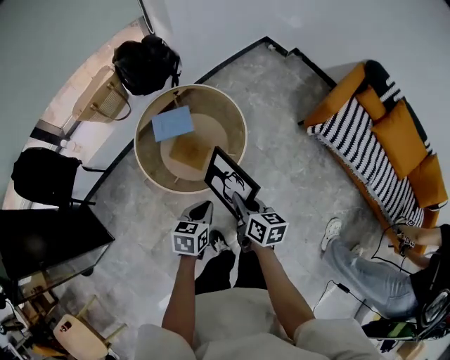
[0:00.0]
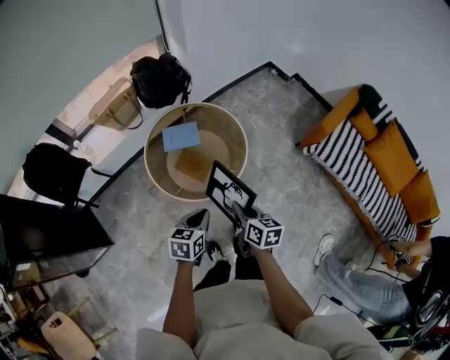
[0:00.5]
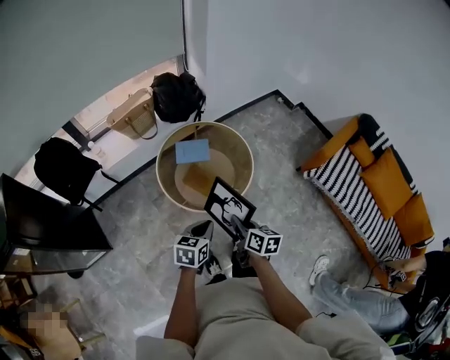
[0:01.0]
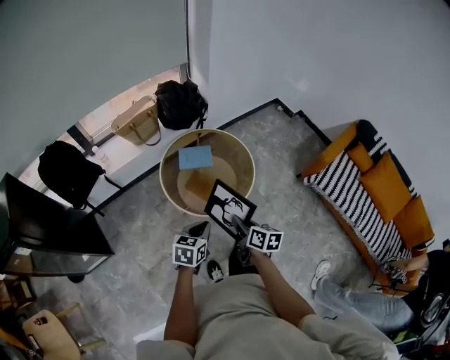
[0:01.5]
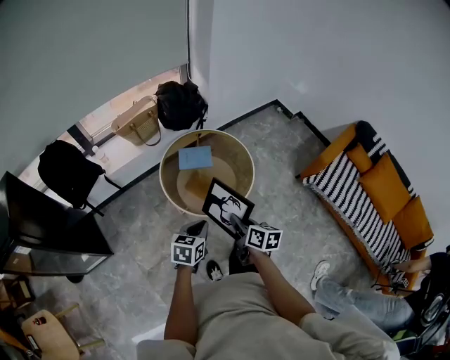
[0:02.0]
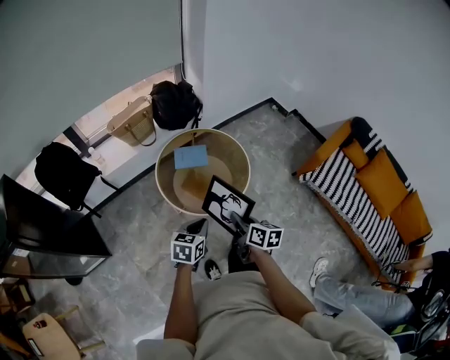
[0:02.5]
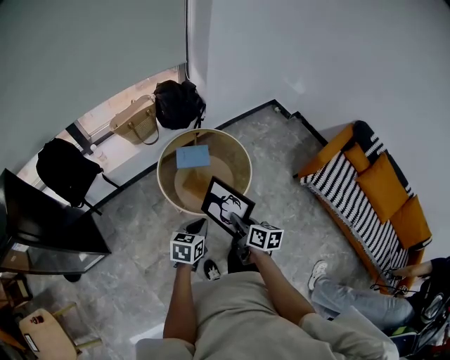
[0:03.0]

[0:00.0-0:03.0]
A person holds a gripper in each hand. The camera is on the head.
0:00.0 to 0:01.5: The grippers both shift upward, to the left and backward by roughly 15 cm.
0:01.5 to 0:03.0: There are only small adjustments of the grippers.

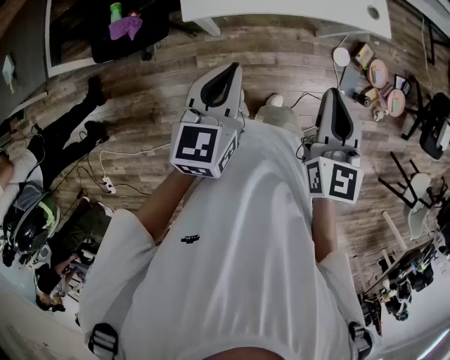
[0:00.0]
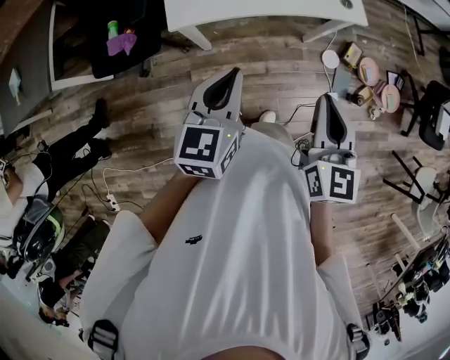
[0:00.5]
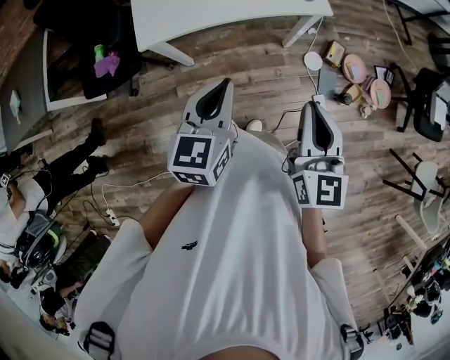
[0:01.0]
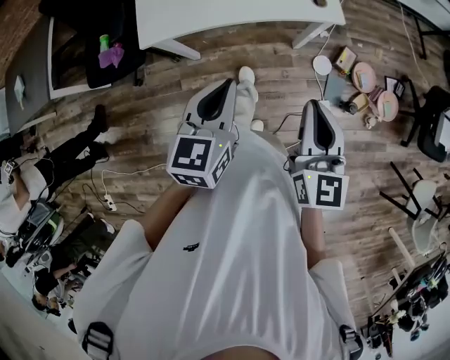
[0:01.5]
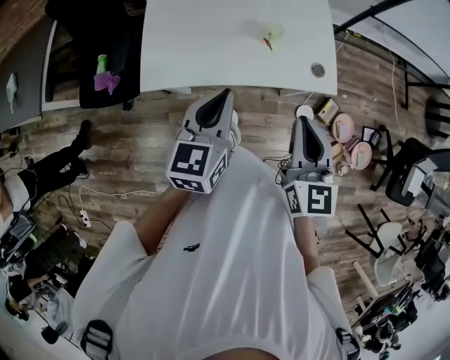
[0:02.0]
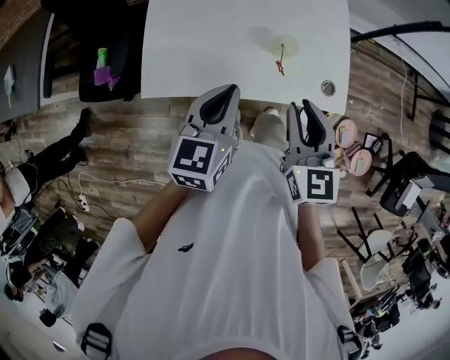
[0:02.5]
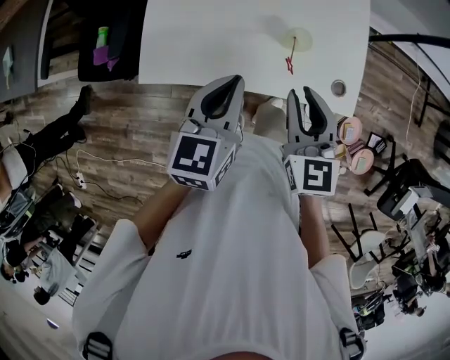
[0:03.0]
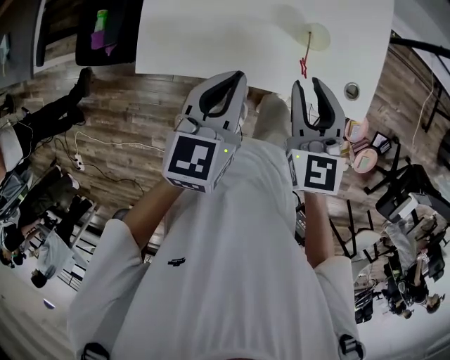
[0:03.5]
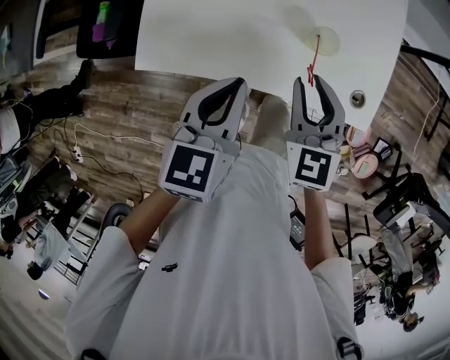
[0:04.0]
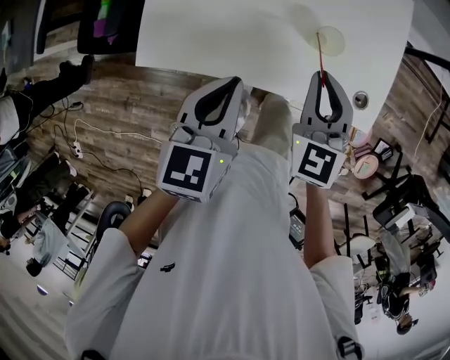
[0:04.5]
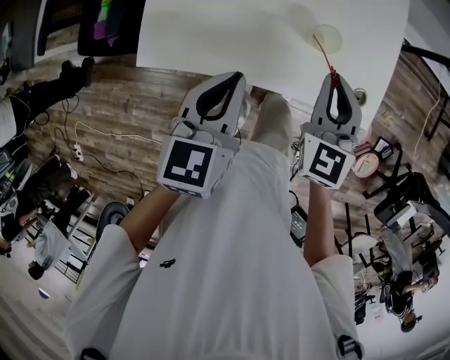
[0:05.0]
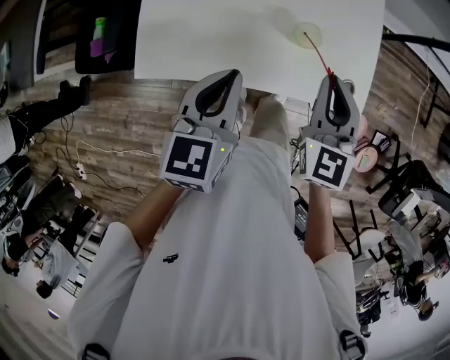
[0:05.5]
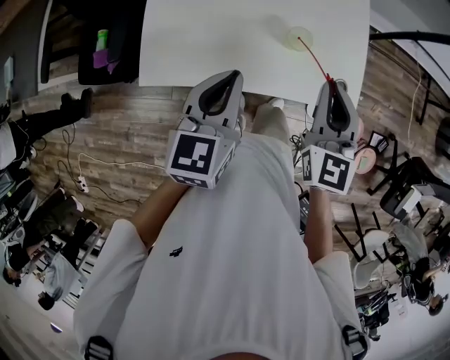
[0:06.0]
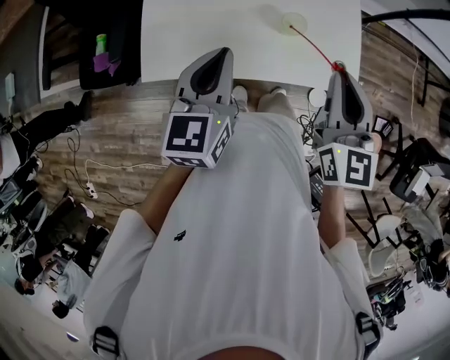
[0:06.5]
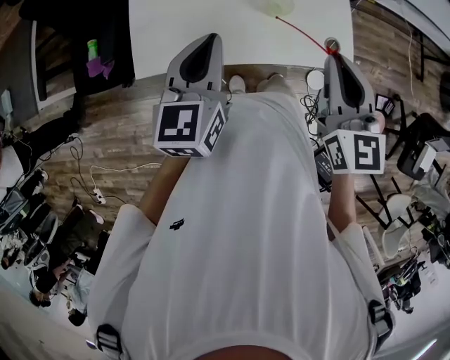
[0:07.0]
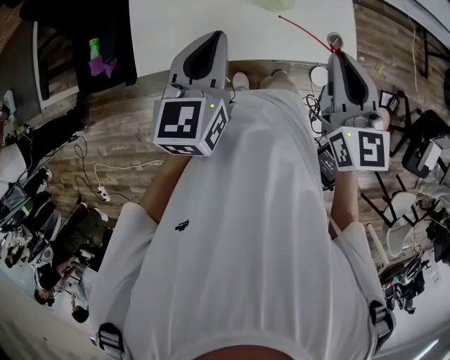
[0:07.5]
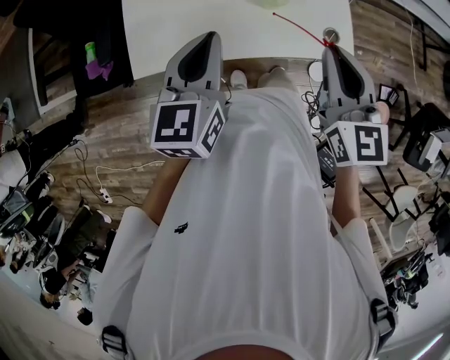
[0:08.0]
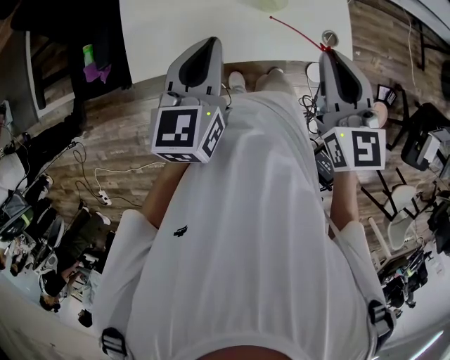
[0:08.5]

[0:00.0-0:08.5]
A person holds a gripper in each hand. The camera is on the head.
0:00.0 to 0:02.0: The grippers both shift forward and to the right by roughly 20 cm.
0:02.0 to 0:04.0: The right gripper heads forward and downward, covering roughly 25 cm, swivels some 30 degrees, and opens; the left gripper heads forward and downward, covering approximately 15 cm.
0:04.0 to 0:06.5: The left gripper heads upward, covering approximately 10 cm, while the right gripper travels upward and to the right by some 15 cm, rotates some 30 degrees, and closes up.
0:06.5 to 0:08.5: There are only small adjustments of the grippers.

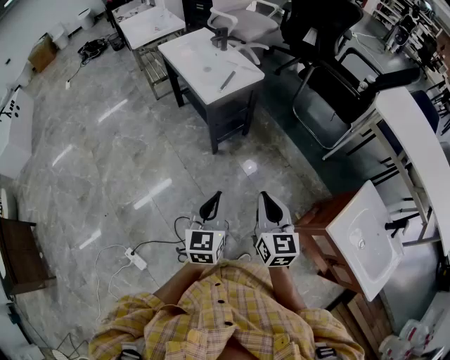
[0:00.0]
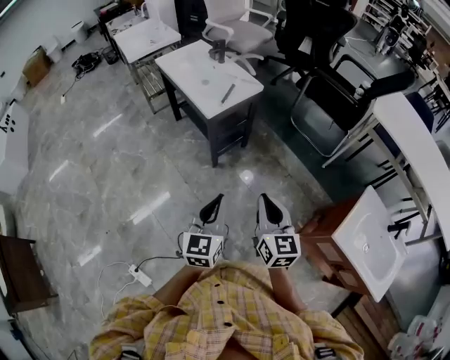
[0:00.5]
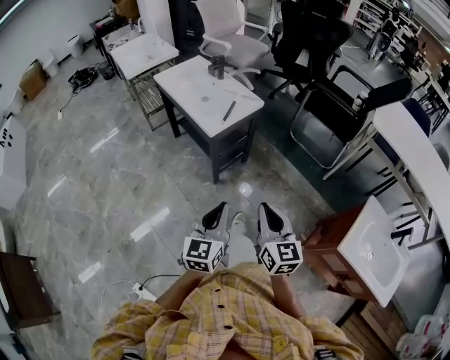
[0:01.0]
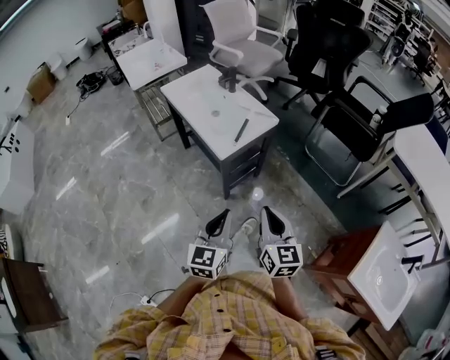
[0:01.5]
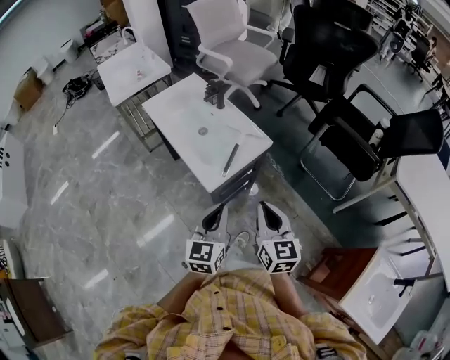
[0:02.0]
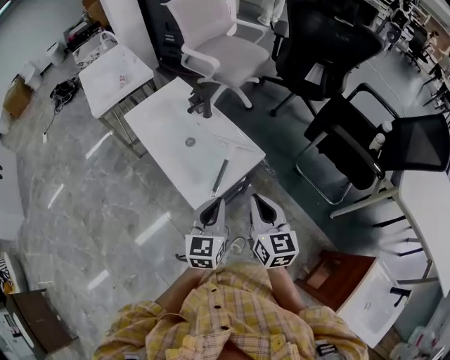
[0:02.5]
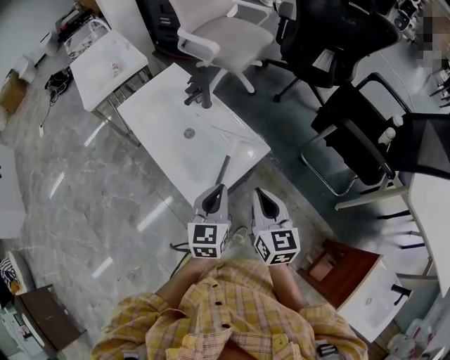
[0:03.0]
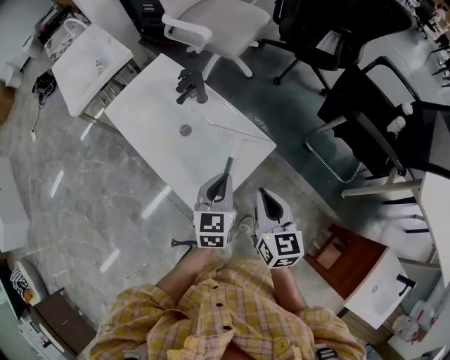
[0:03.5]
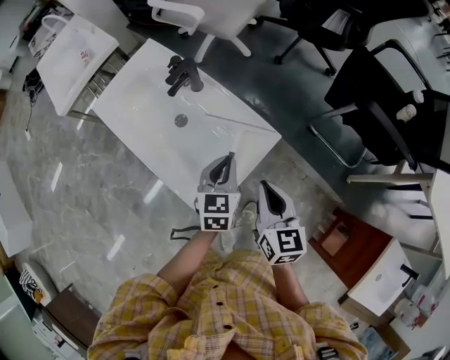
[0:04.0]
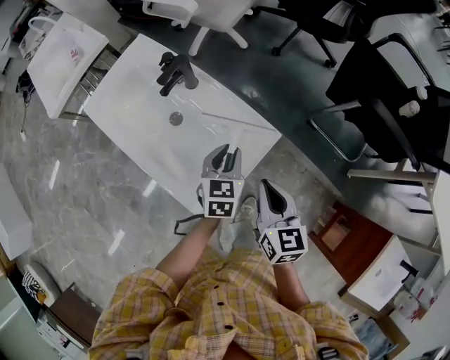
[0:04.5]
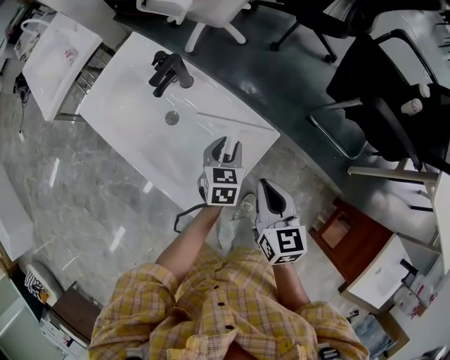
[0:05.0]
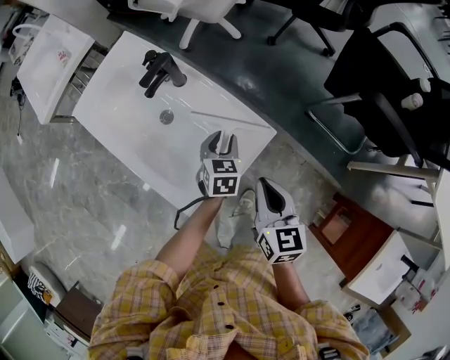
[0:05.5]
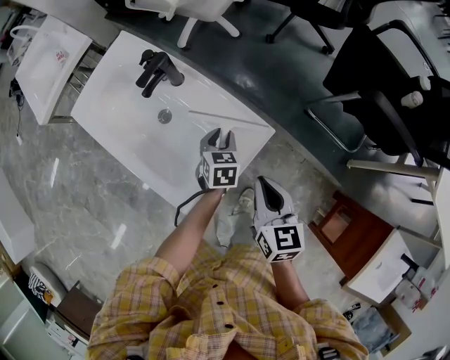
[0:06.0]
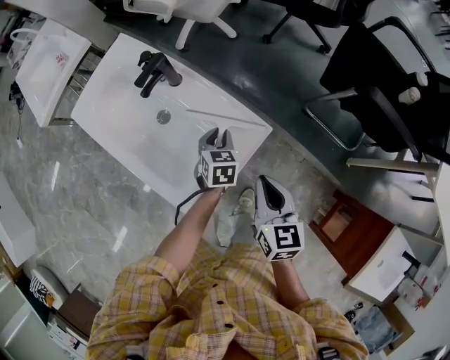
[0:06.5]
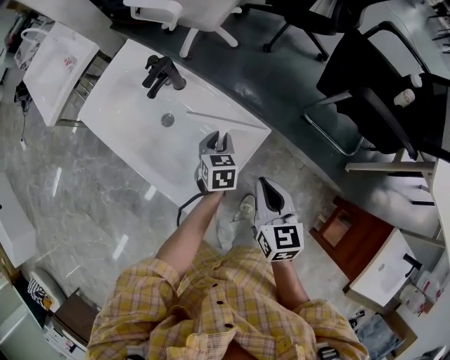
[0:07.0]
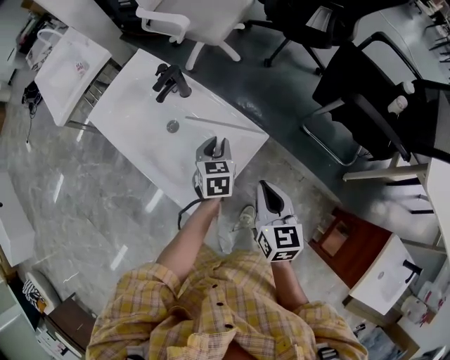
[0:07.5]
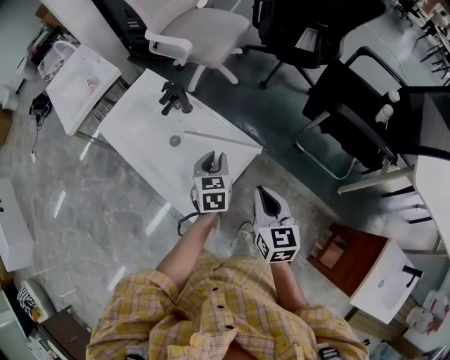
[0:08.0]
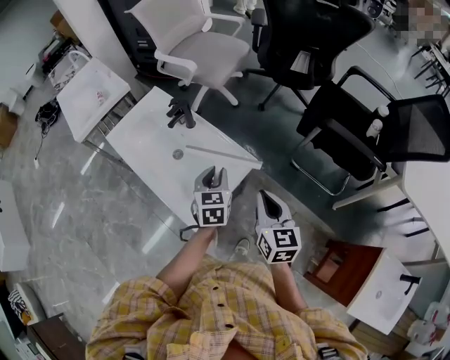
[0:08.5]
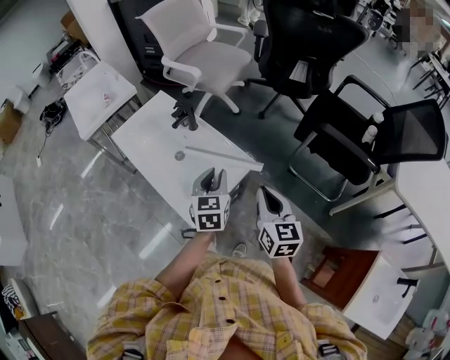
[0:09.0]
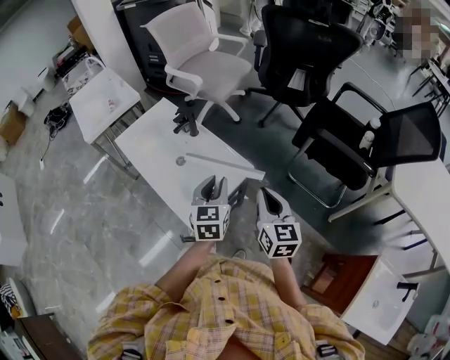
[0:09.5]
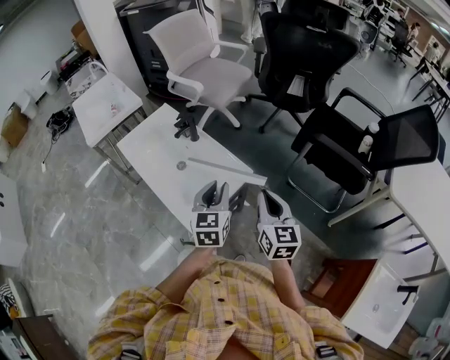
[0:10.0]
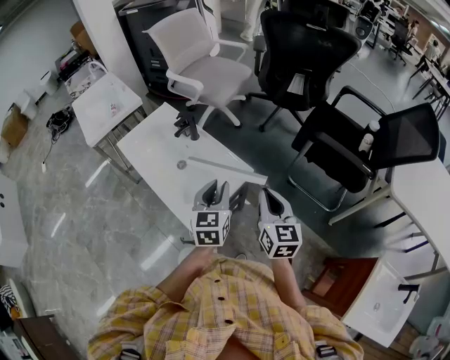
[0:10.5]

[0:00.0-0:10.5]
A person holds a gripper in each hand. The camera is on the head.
0:00.0 to 0:02.0: Both grippers move forward, roughly 40 cm.
0:02.0 to 0:04.0: The two grippers go roughly 30 cm forward and downward. The left gripper swivels some 20 degrees.
0:04.0 to 0:06.5: The left gripper moves downward and forward, roughly 15 cm; the right gripper moves about 5 cm.
0:06.5 to 0:08.5: The right gripper goes approximately 10 cm upward and backward. Meanwhile the left gripper goes roughly 20 cm upward and backward.
0:08.5 to 0:10.5: The right gripper shifts by approximately 5 cm, while the left gripper travels upward and backward by some 10 cm.

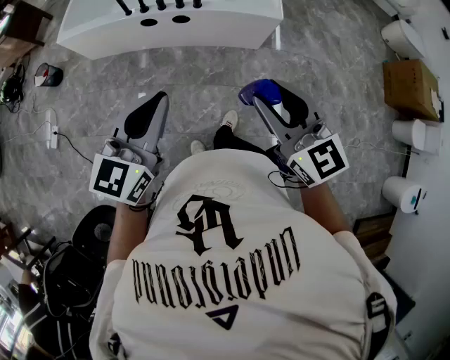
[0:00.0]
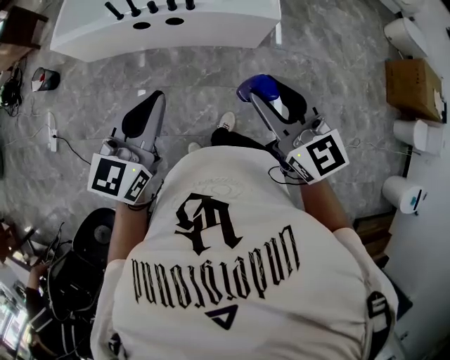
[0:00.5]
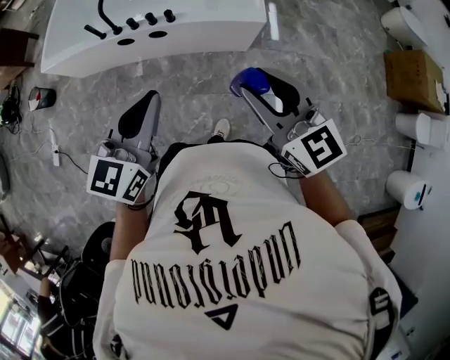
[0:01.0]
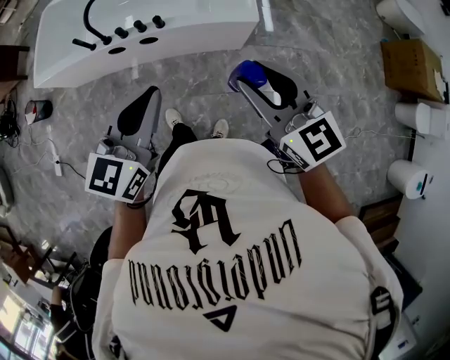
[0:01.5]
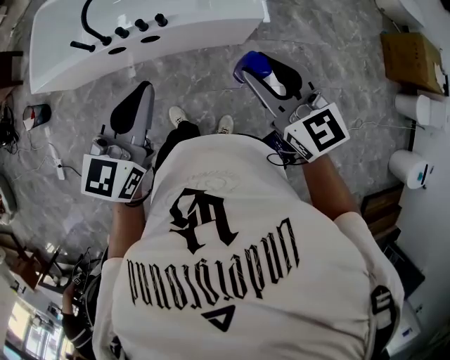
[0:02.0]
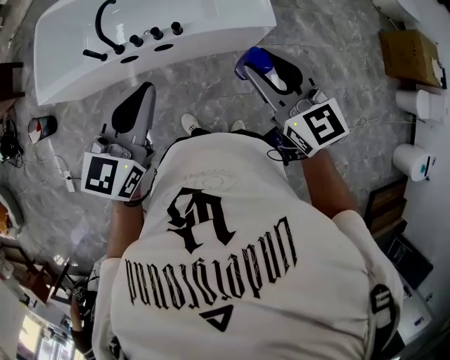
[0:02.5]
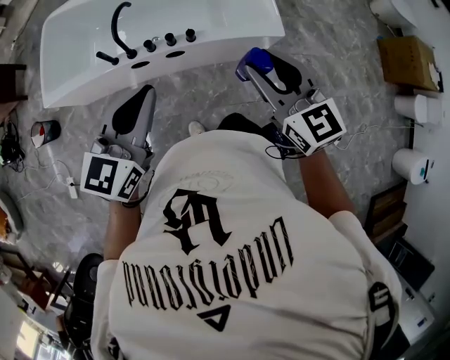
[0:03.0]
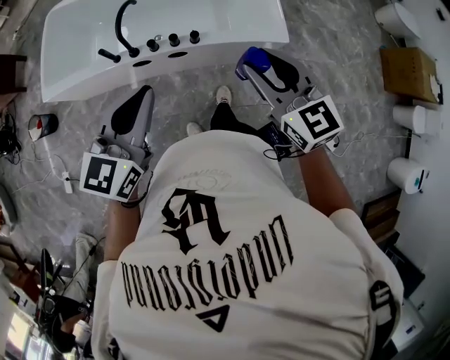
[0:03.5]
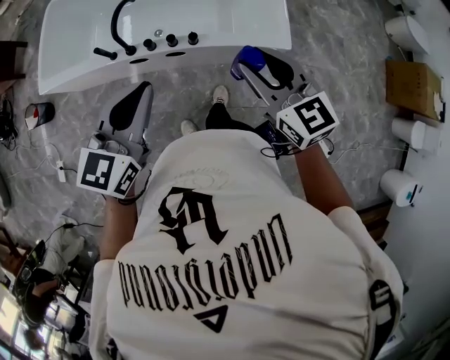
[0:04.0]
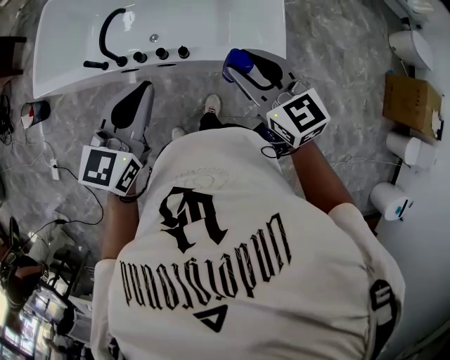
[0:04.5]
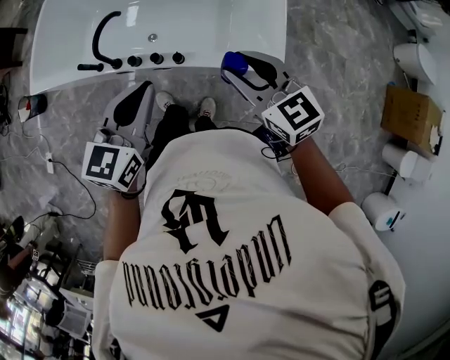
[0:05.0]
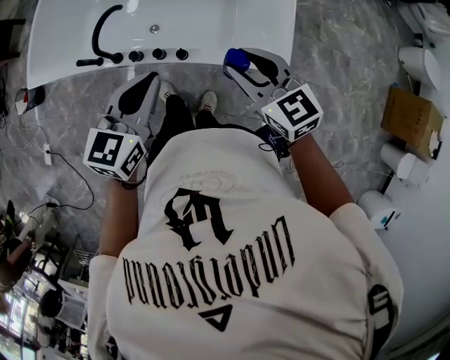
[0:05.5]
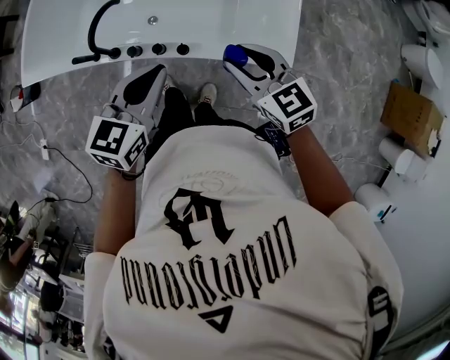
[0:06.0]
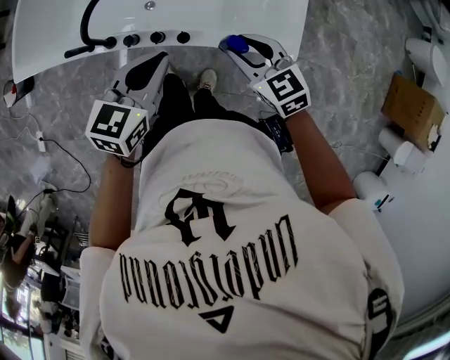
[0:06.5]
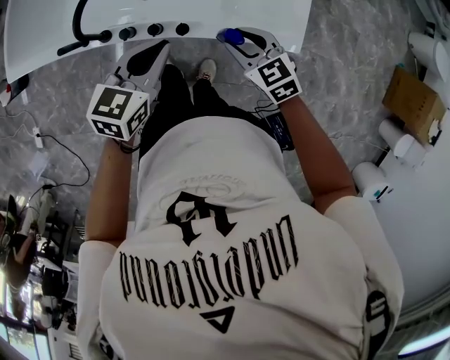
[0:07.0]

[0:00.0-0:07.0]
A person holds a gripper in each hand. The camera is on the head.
0:00.0 to 0:02.0: Both grippers travel together forward, some 25 cm.
0:02.0 to 0:03.5: The two grippers go some 20 cm to the left and forward.
0:03.5 to 0:05.0: The two grippers go about 20 cm forward and to the right.
0:05.0 to 0:07.0: The right gripper is displaced downward by approximately 20 cm, and swivels roughly 20 degrees. The left gripper travels downward and forward by about 20 cm.
